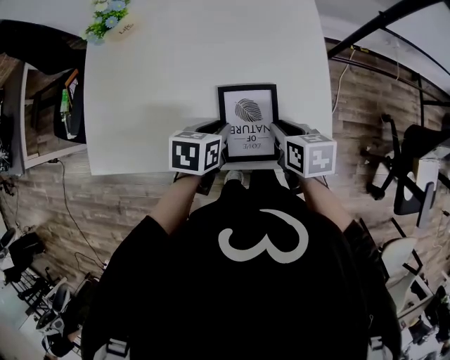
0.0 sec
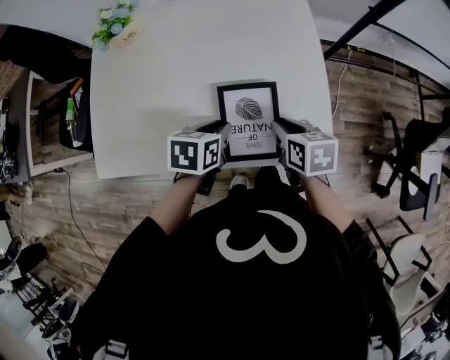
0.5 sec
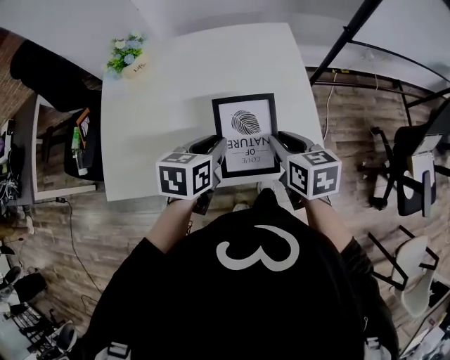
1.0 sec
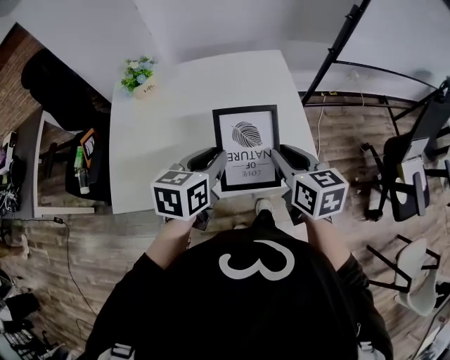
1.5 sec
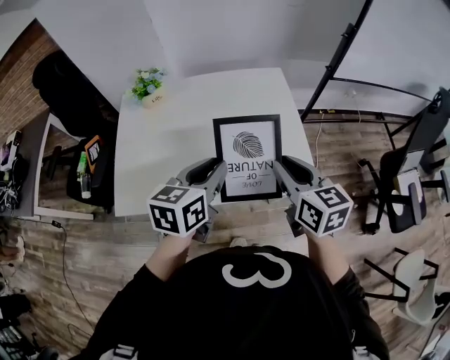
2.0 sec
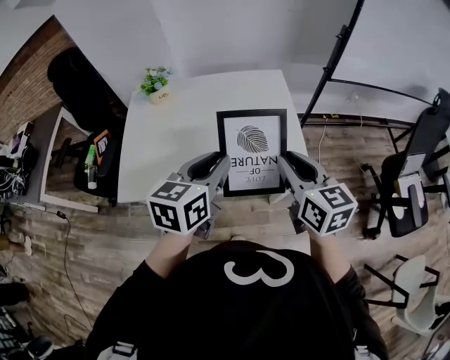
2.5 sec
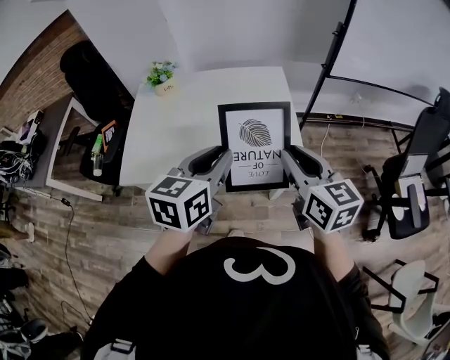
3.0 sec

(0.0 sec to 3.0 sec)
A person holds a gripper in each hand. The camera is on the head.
0.0 sec - 1.5 sec: The grippers both shift upward by roughly 20 cm. The right gripper rotates about 30 degrees. The left gripper swivels roughly 30 degrees.
1.5 sec - 3.0 sec: Both grippers travel together upward, backward and to the right, some 15 cm.

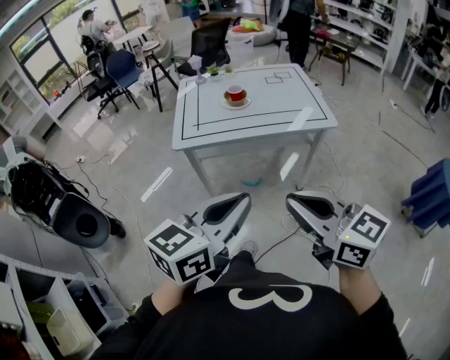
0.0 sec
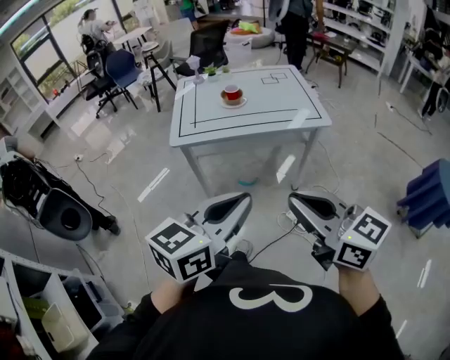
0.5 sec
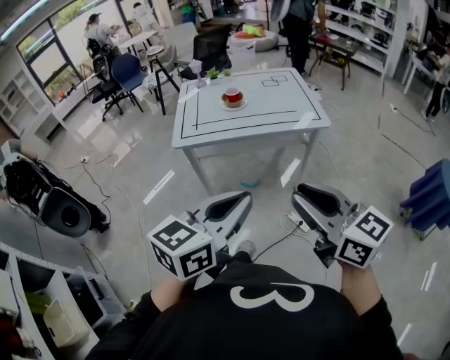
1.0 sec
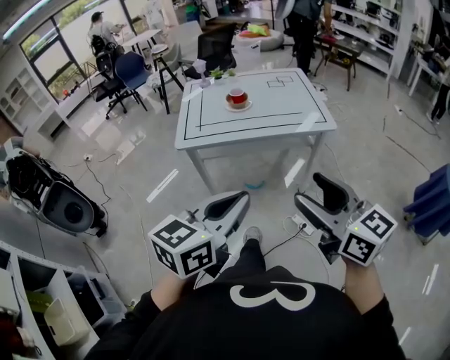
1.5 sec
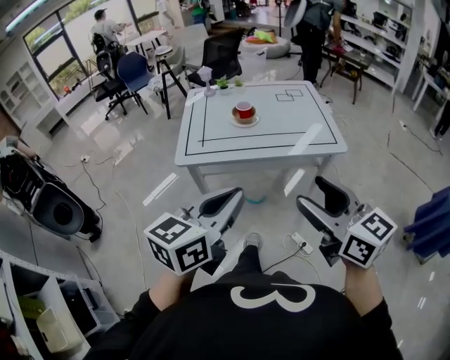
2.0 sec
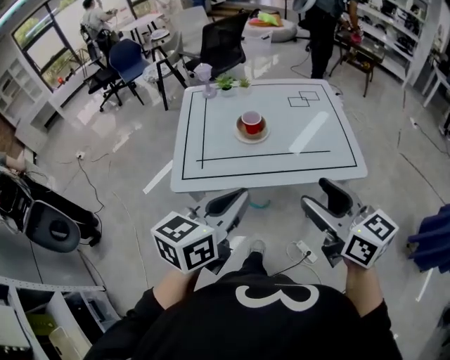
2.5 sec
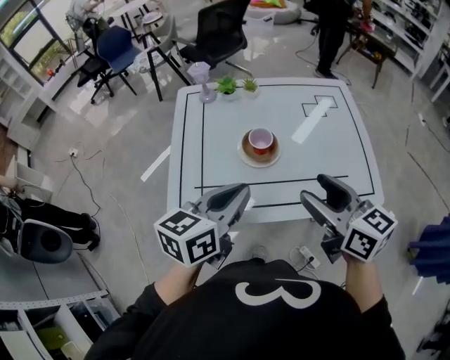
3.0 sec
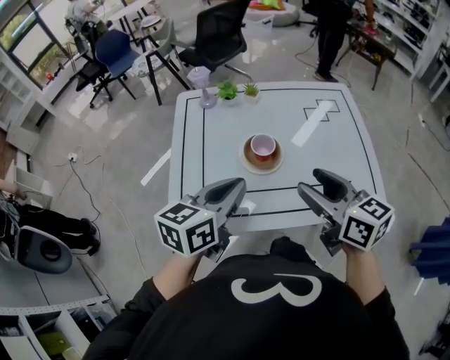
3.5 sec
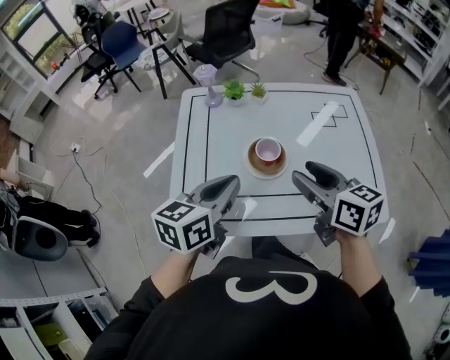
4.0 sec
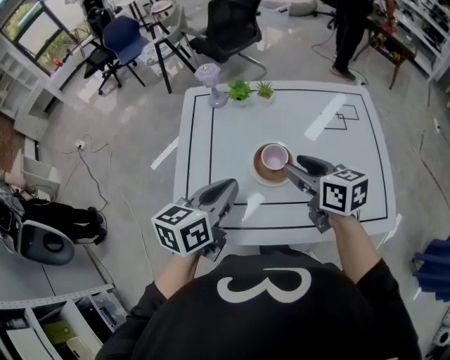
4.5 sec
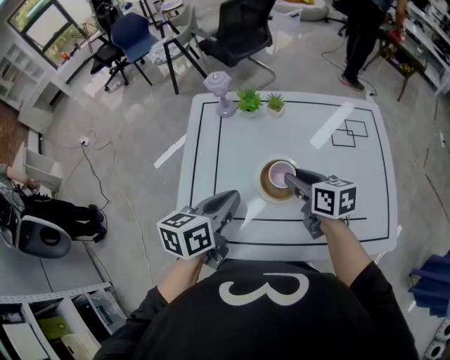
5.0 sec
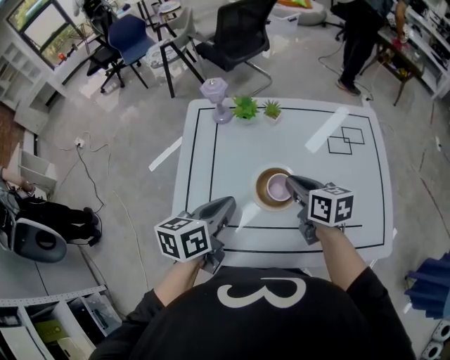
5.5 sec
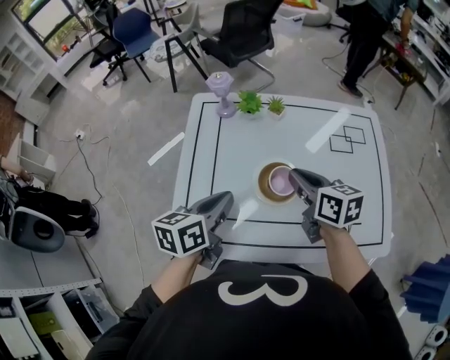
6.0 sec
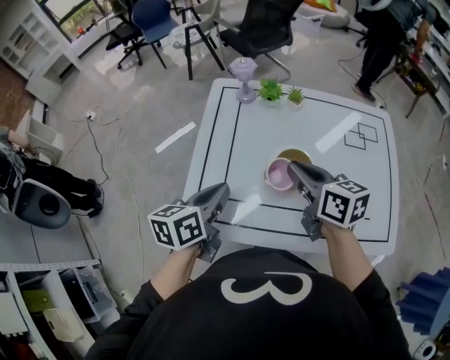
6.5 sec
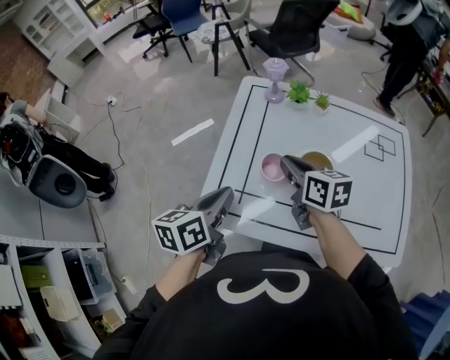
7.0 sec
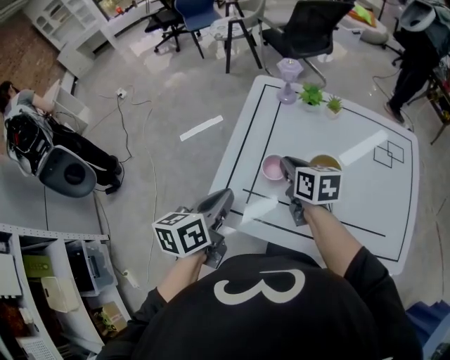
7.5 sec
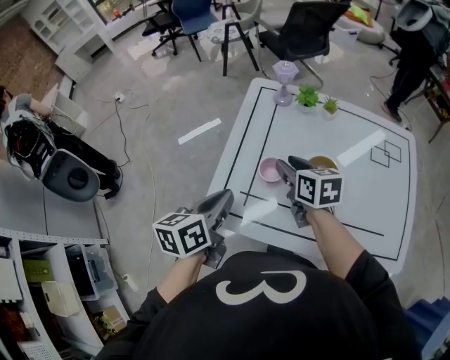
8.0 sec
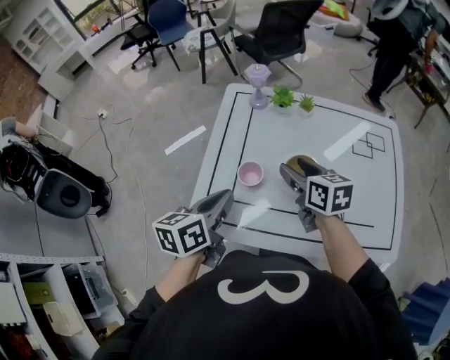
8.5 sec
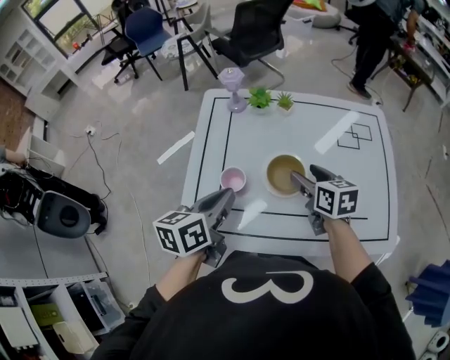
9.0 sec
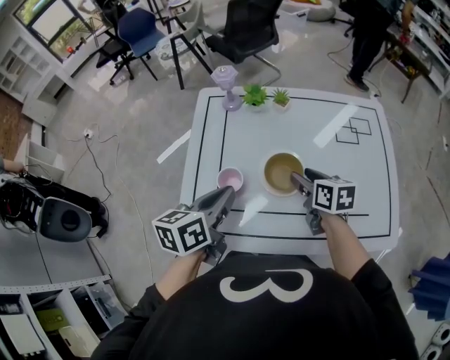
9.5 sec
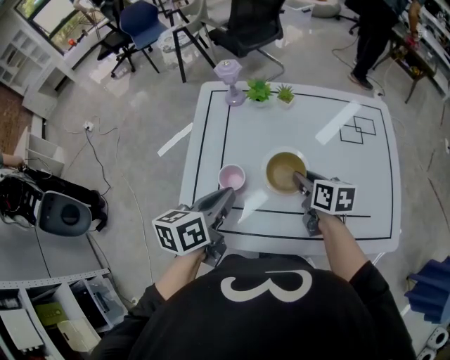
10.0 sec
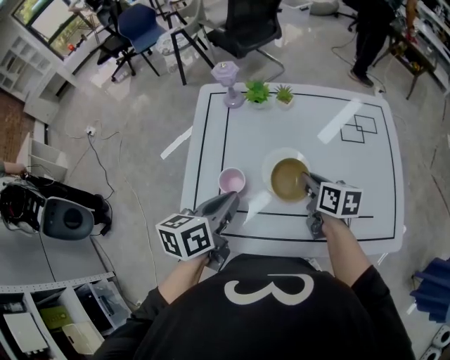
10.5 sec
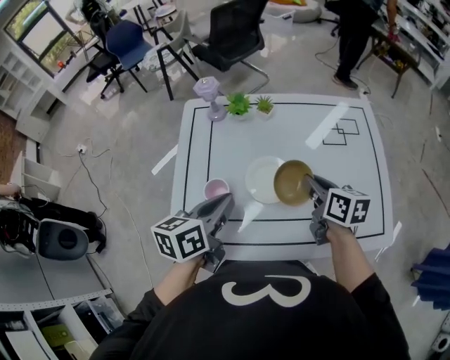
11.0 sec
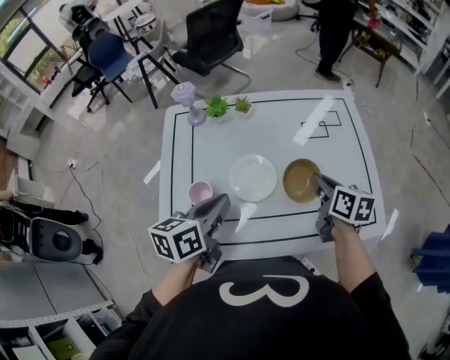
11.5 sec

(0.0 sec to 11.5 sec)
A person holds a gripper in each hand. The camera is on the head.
0.0 sec - 2.0 sec: Both grippers travel together forward, roughly 10 cm. The right gripper opens.
2.0 sec - 4.0 sec: Both grippers are carried forward, approximately 40 cm. The right gripper rotates roughly 20 degrees.
4.0 sec - 6.0 sec: The left gripper moves forward and downward, approximately 10 cm; the right gripper heads forward and downward, covering some 15 cm, and closes its fingers.
6.0 sec - 7.5 sec: The right gripper travels to the left by approximately 15 cm, while the left gripper shifts some 15 cm to the left and backward.
7.5 sec - 9.5 sec: The left gripper is displaced to the right and forward by roughly 15 cm. The right gripper goes roughly 20 cm to the right, and opens its fingers.
9.5 sec - 11.5 sec: The left gripper is displaced to the right by approximately 5 cm; the right gripper heads to the right, covering roughly 15 cm, and closes.

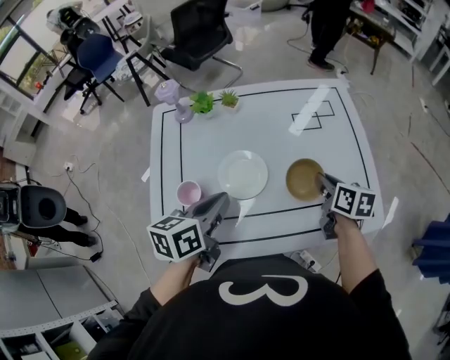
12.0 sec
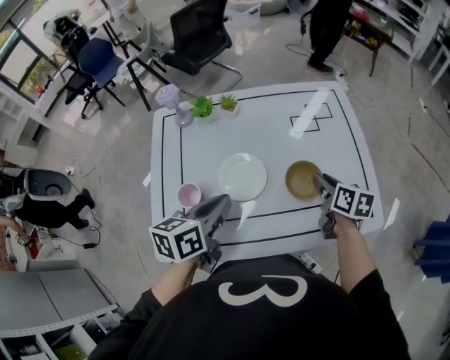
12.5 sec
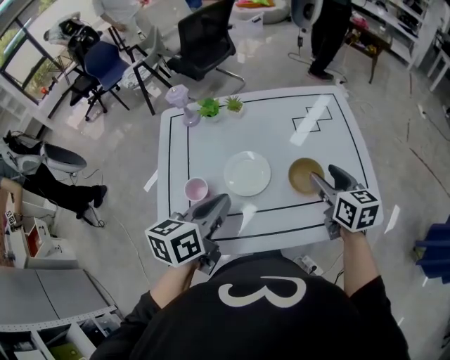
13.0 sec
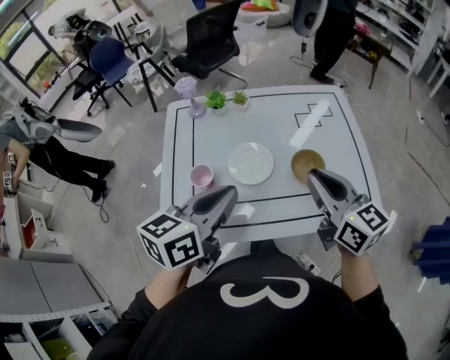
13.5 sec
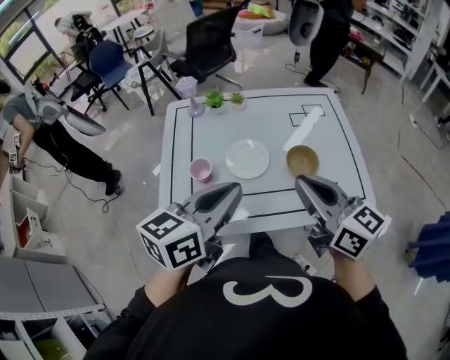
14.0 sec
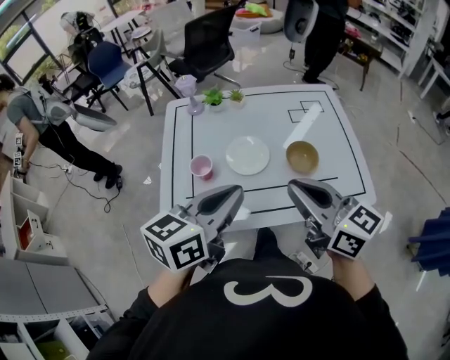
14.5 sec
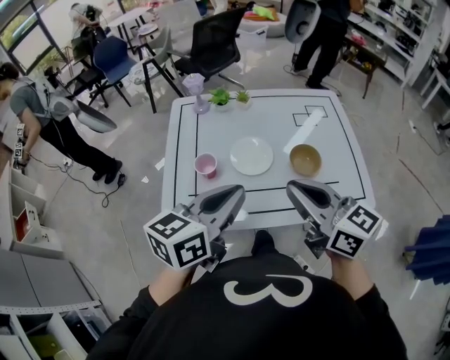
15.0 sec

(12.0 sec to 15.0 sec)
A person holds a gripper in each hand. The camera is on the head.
12.0 sec - 13.5 sec: The right gripper goes about 25 cm upward, backward and to the left, swivels roughly 40 degrees, and opens, then closes once more. The left gripper shifts some 15 cm upward and backward.
13.5 sec - 15.0 sec: The left gripper moves backward, about 5 cm; the right gripper shifts about 10 cm backward and to the left.

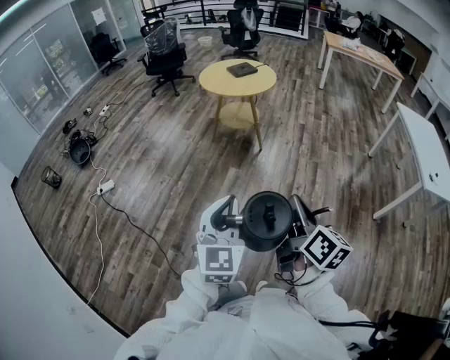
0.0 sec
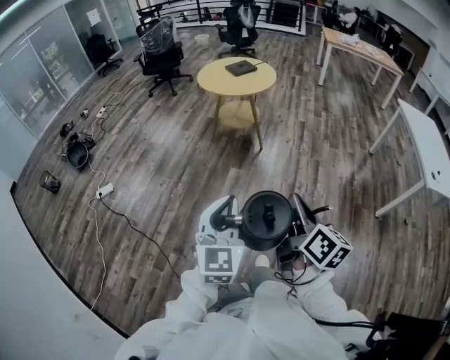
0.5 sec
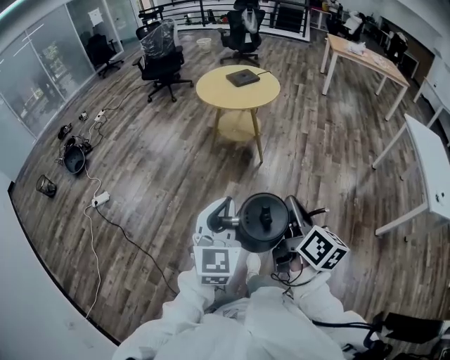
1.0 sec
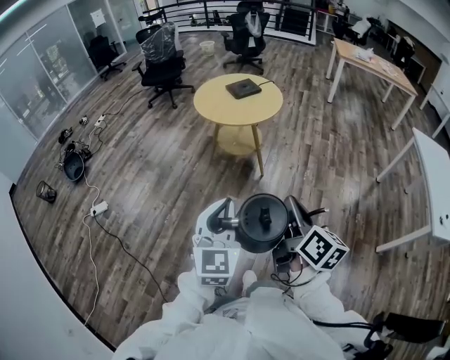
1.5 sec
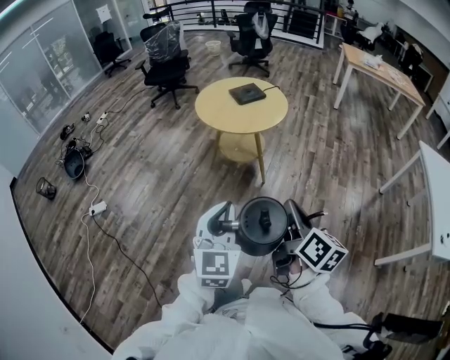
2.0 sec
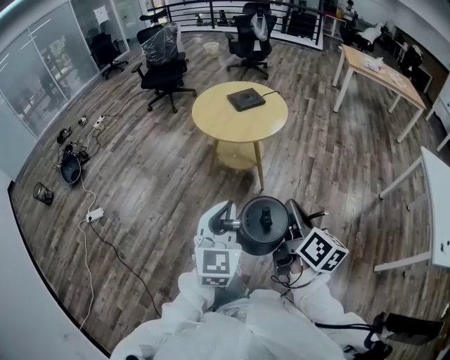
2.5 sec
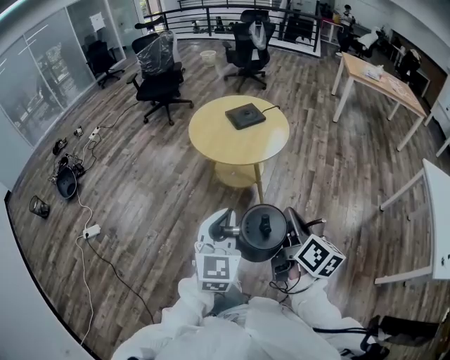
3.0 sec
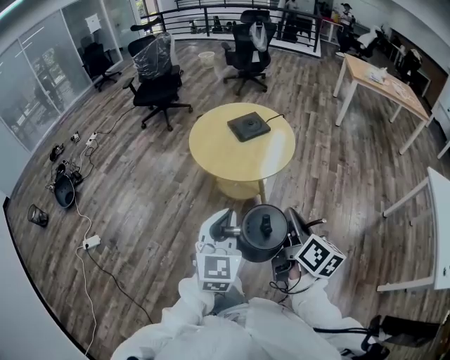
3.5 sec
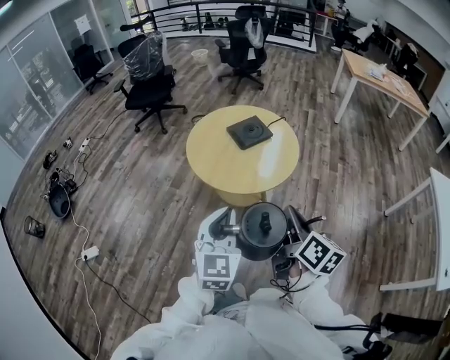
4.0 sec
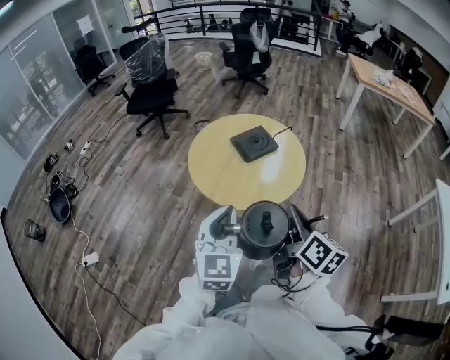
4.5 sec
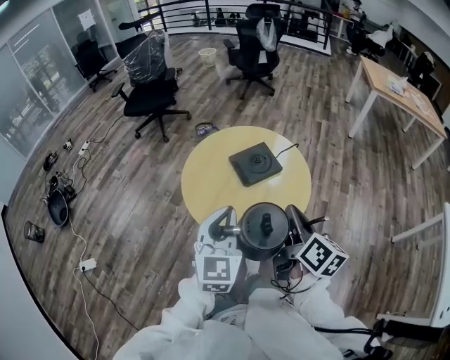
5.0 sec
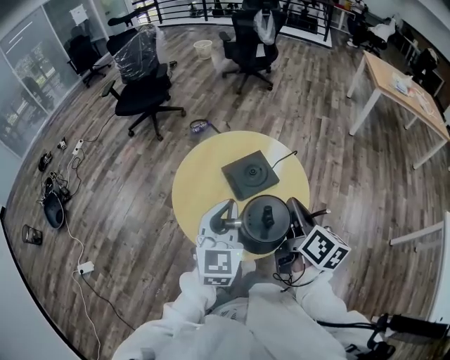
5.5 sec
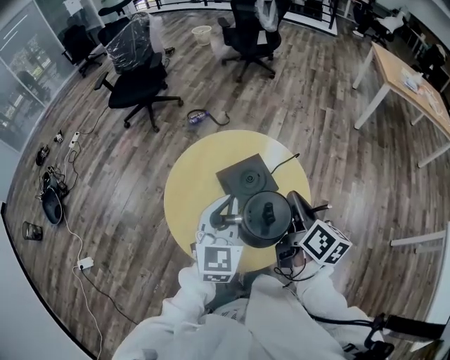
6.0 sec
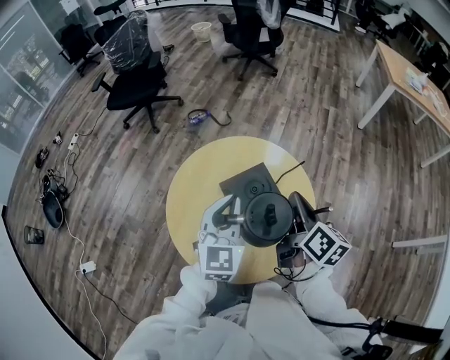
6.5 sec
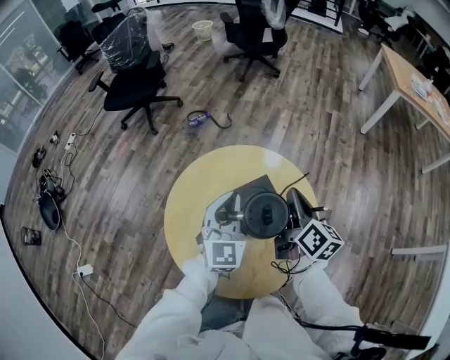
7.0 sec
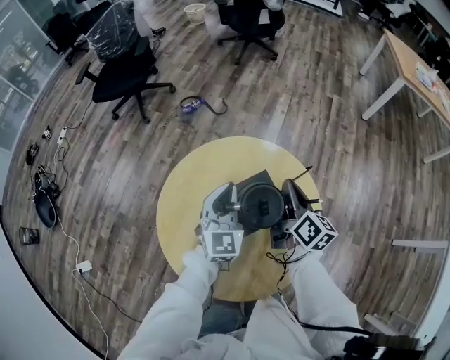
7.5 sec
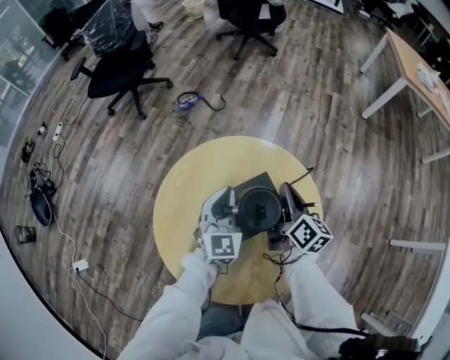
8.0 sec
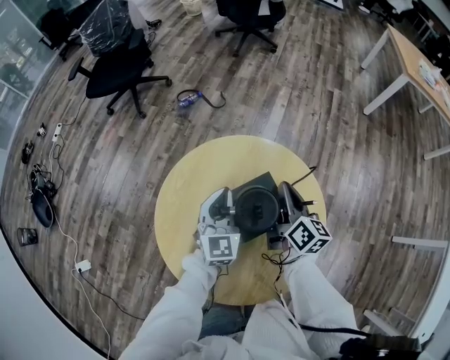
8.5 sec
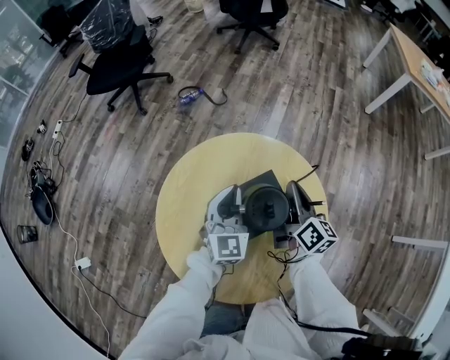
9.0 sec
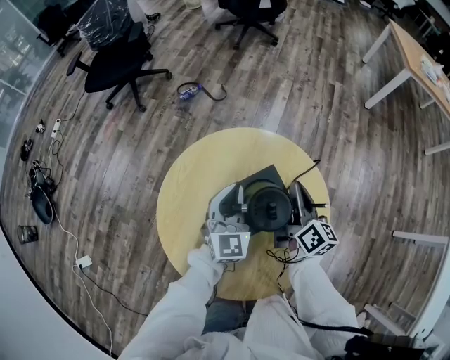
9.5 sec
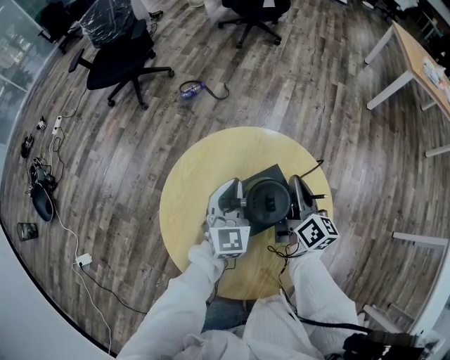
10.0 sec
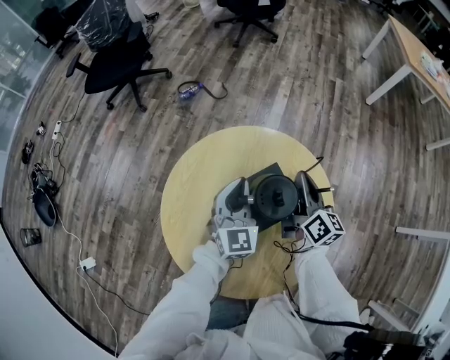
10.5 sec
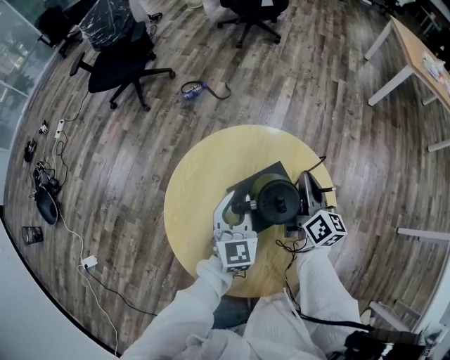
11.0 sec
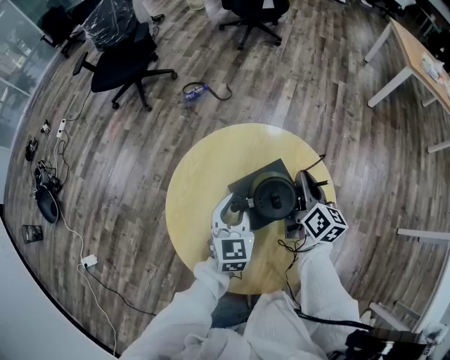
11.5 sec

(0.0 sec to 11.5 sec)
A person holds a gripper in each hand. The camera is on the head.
0.0 sec - 2.0 sec: Both grippers travel together forward, some 35 cm.
2.0 sec - 4.0 sec: The two grippers go approximately 35 cm forward.
4.0 sec - 6.0 sec: The pair of grippers is taken forward, roughly 50 cm.
6.0 sec - 7.5 sec: The two grippers go about 20 cm forward and downward.
7.5 sec - 9.5 sec: The grippers stay close to where they were, moving slightly.
9.5 sec - 11.5 sec: The left gripper shifts some 5 cm backward, and opens.
